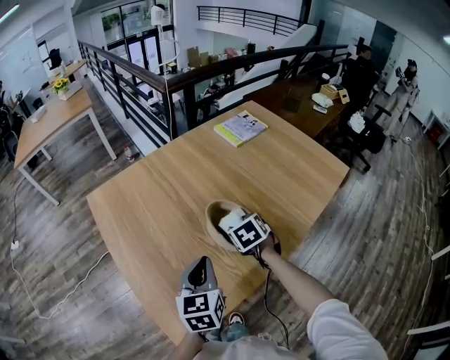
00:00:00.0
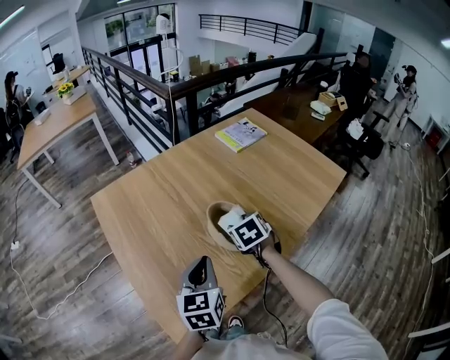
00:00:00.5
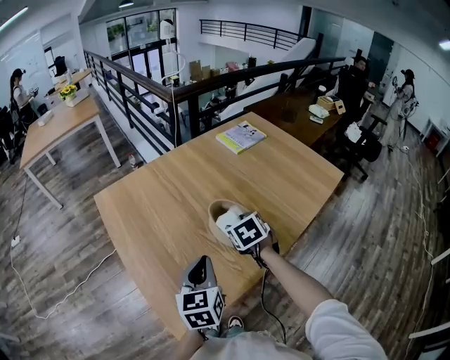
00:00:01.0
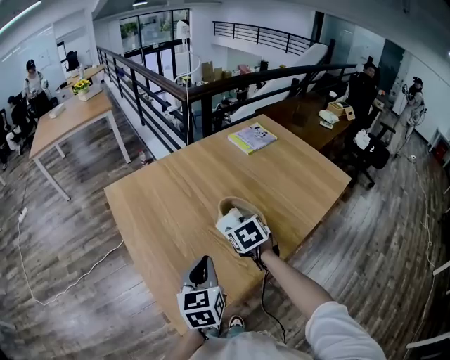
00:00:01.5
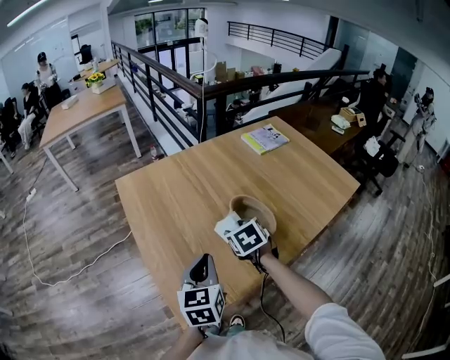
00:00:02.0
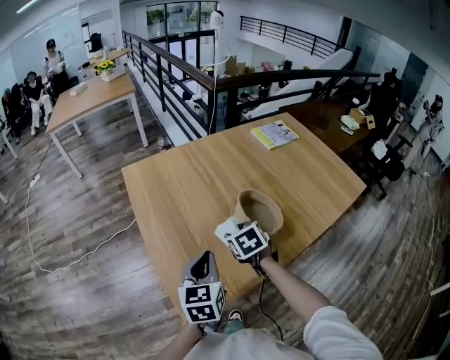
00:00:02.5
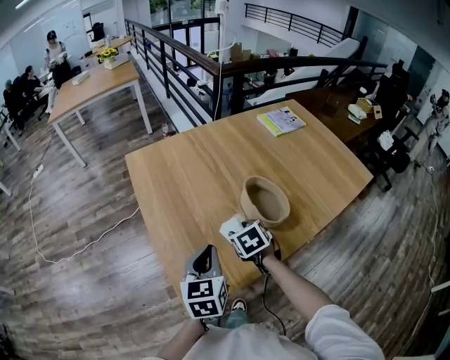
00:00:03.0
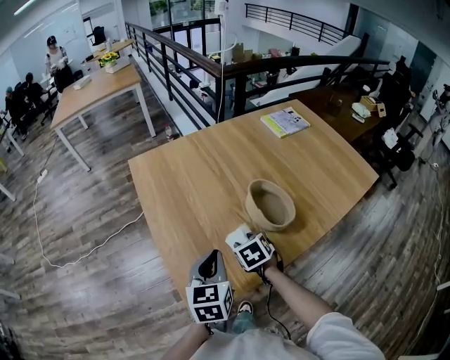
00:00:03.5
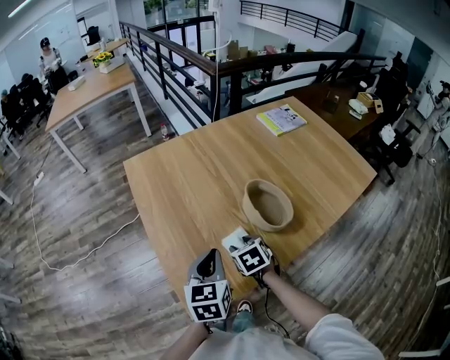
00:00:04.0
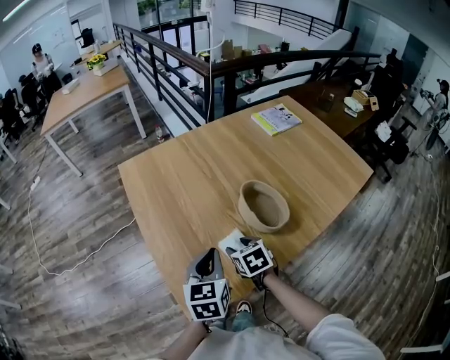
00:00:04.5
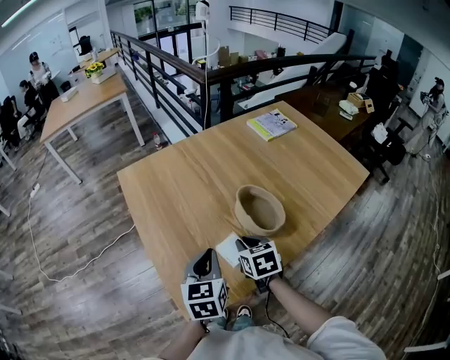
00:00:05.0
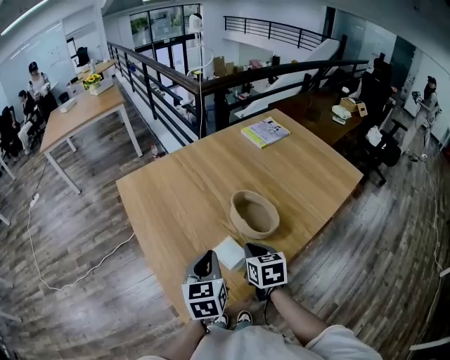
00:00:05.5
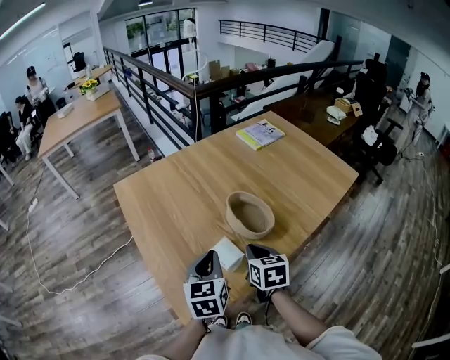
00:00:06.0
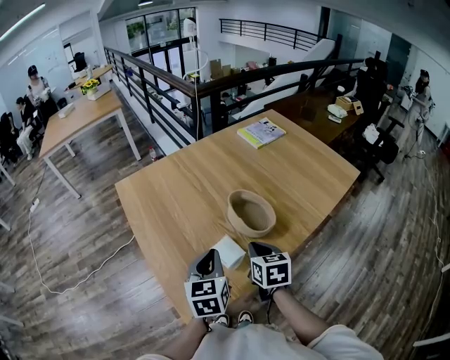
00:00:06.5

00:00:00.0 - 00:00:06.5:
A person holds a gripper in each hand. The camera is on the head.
00:00:00.0 - 00:00:02.0: Both grippers travel together to the left and backward, about 10 cm.
00:00:02.0 - 00:00:04.5: The right gripper is displaced downward and backward by roughly 10 cm.
00:00:04.5 - 00:00:06.5: The right gripper moves upward and to the right, some 15 cm, changes its angle by some 30 degrees, and closes its fingers.

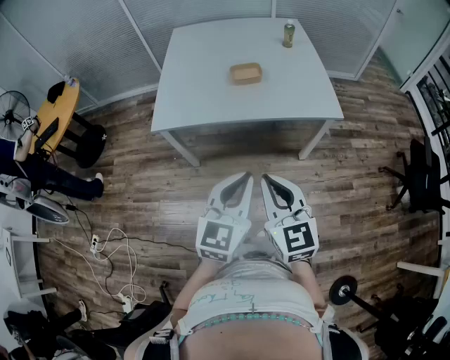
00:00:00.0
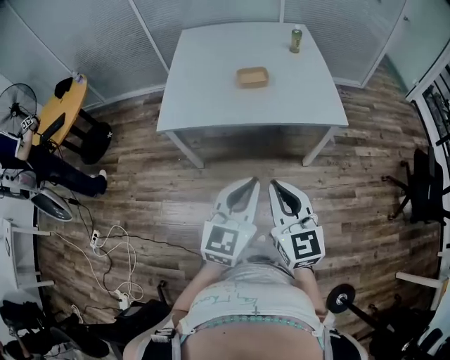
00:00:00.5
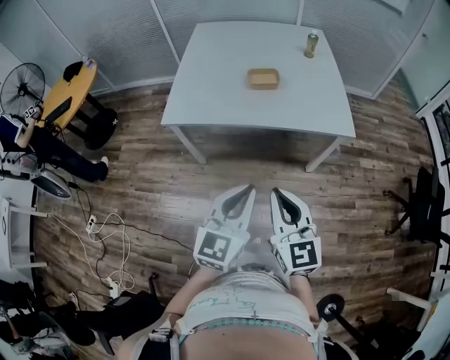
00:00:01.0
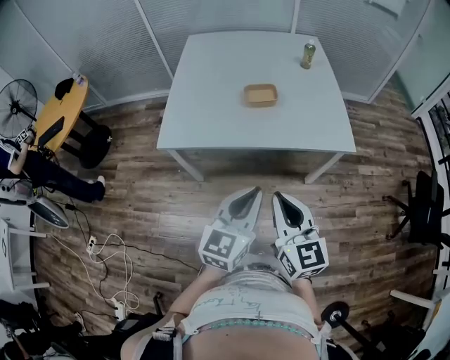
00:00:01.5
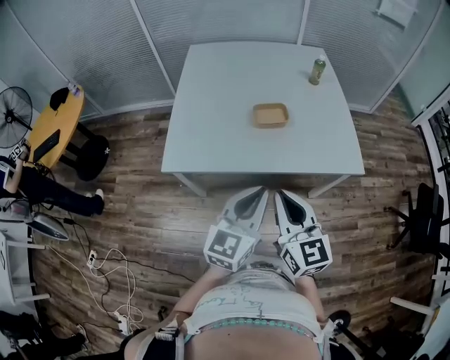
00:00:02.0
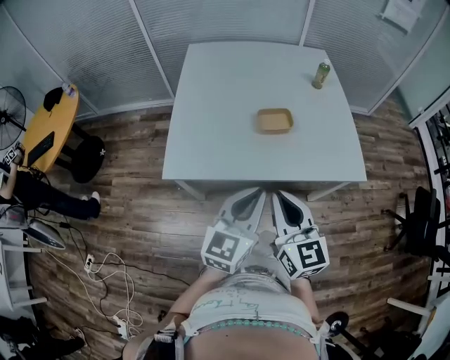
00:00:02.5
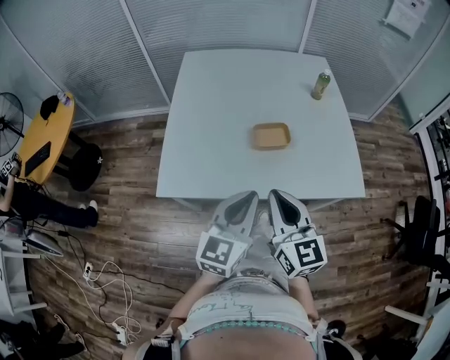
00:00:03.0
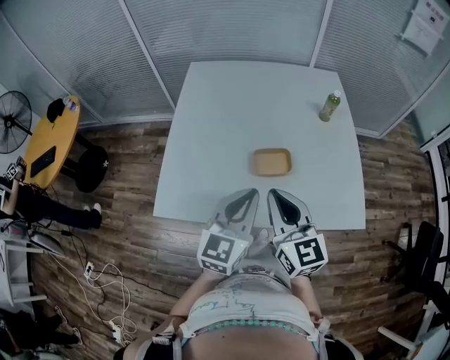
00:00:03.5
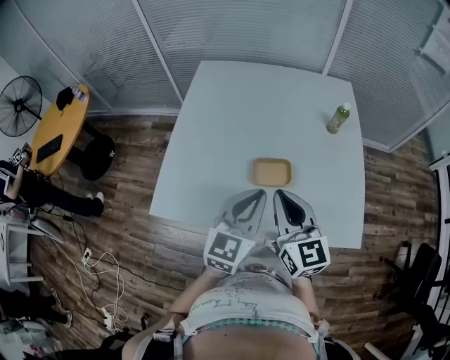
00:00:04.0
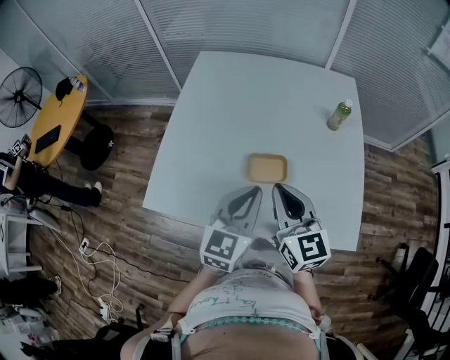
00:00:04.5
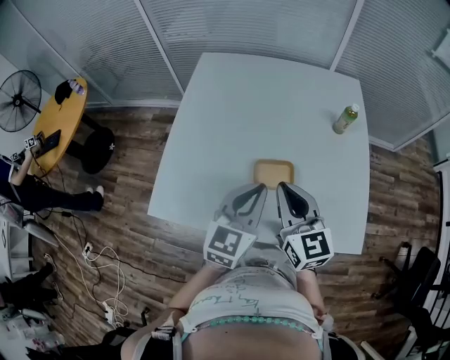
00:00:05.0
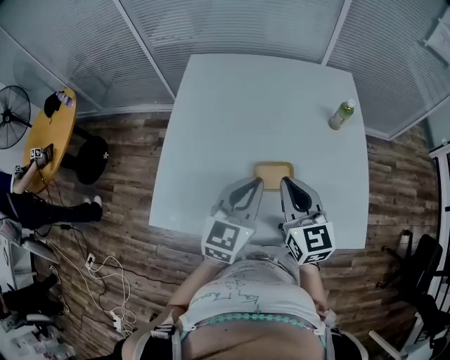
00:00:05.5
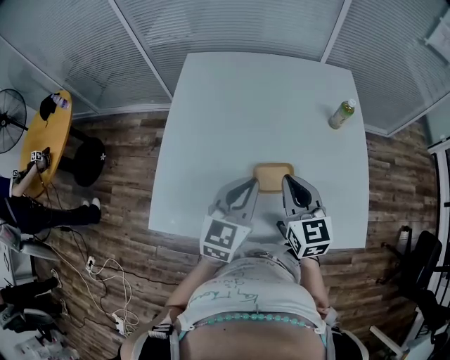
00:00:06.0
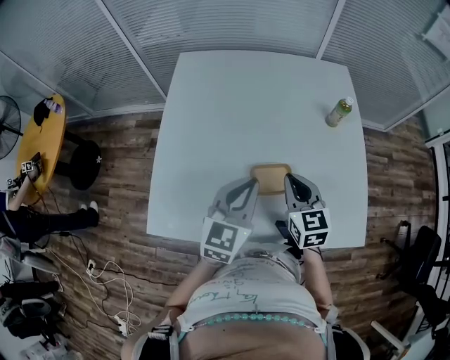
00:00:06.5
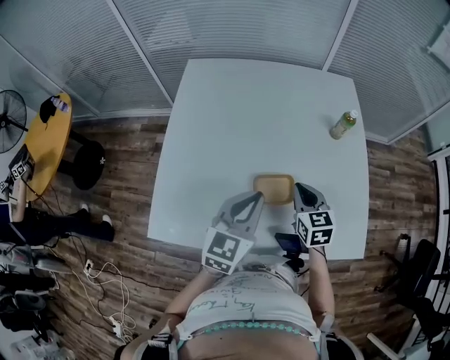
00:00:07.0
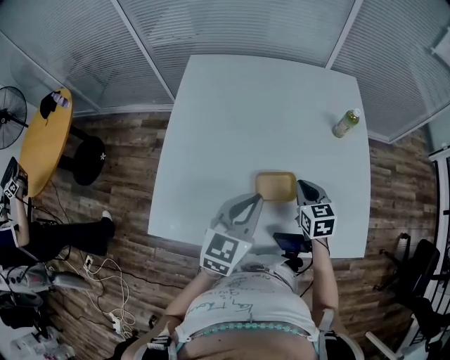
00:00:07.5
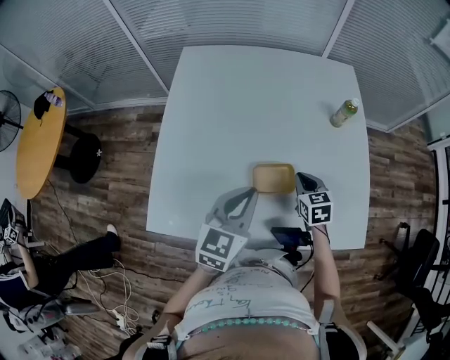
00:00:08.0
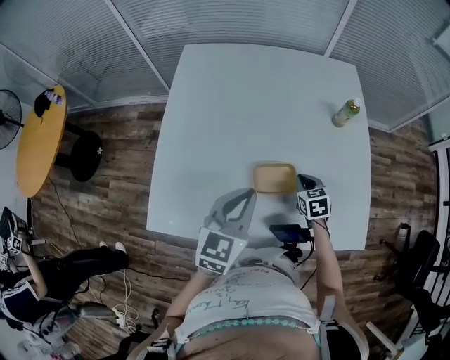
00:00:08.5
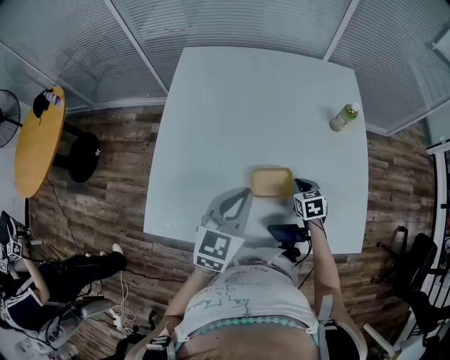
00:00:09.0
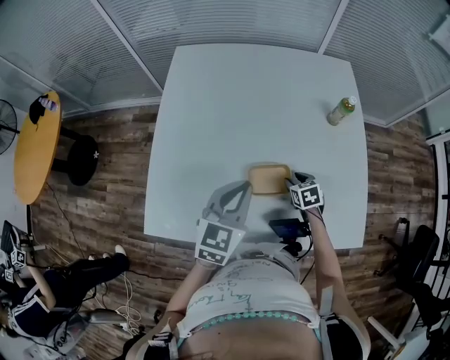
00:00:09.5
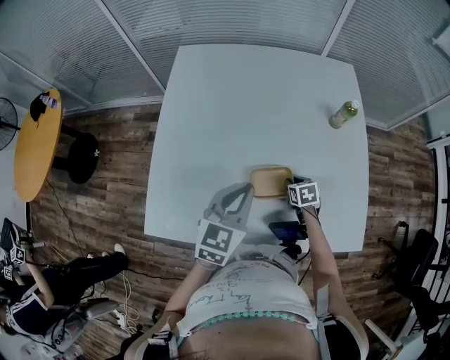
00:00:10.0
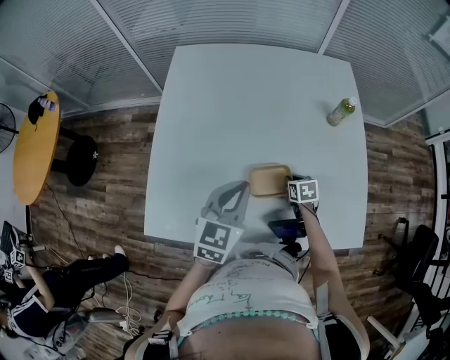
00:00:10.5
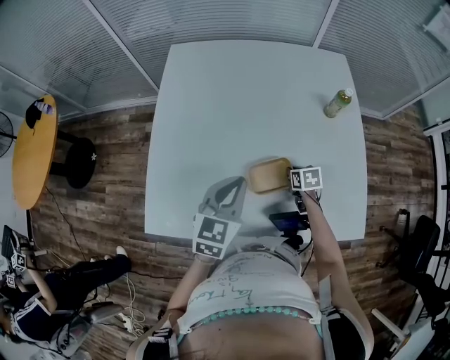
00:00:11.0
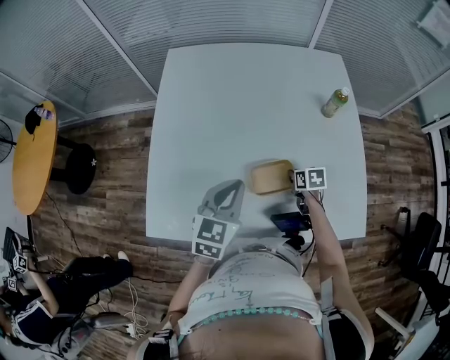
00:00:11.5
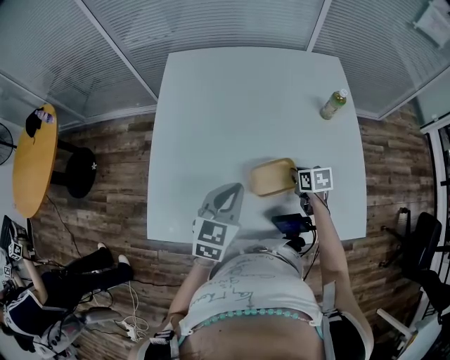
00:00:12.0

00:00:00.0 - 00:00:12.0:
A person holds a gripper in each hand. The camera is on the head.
00:00:00.0 - 00:00:02.0: Both grippers move forward, some 20 cm.
00:00:02.0 - 00:00:04.0: The two grippers go roughly 25 cm forward.
00:00:04.0 - 00:00:06.0: The left gripper shifts about 10 cm forward. The right gripper goes roughly 10 cm forward and downward.
00:00:06.0 - 00:00:08.0: The right gripper goes some 20 cm downward and to the right, and turns by roughly 30 degrees.
00:00:08.0 - 00:00:10.0: The right gripper travels downward by approximately 15 cm, swivels about 20 degrees, and opens, then closes once more.
00:00:10.0 - 00:00:12.0: The right gripper goes roughly 5 cm upward.

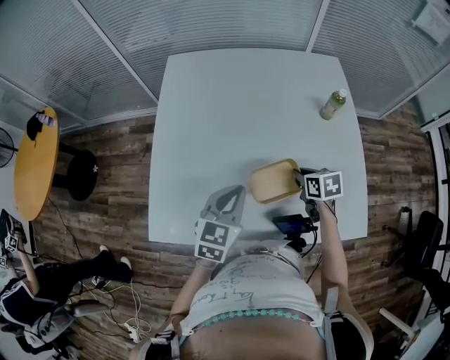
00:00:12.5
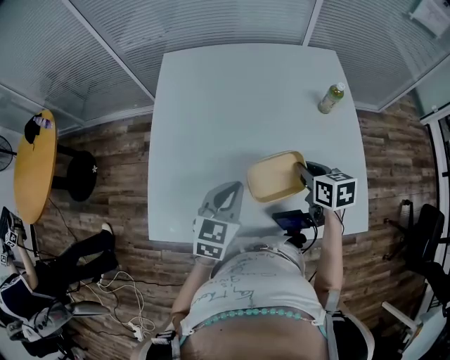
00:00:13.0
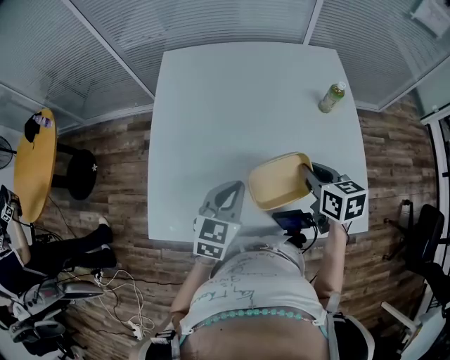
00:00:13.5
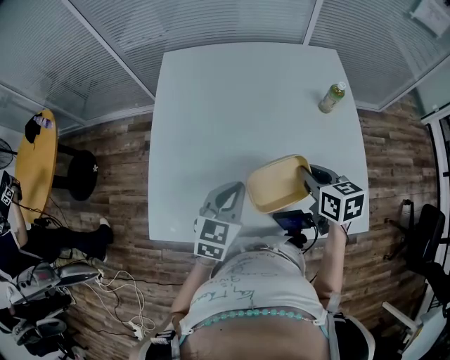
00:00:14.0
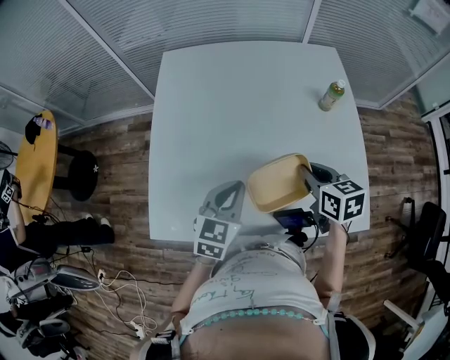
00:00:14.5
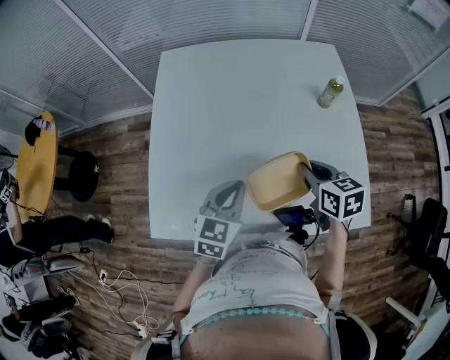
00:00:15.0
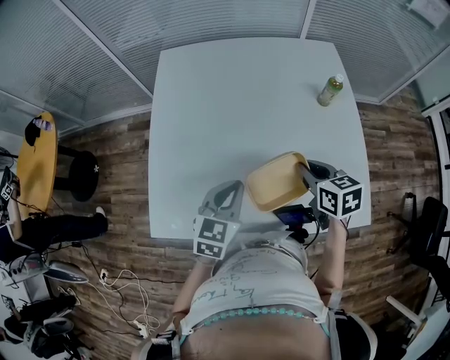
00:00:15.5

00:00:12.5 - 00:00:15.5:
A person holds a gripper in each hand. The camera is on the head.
00:00:12.5 - 00:00:14.0: The right gripper is displaced upward by approximately 10 cm.
00:00:14.0 - 00:00:15.5: Both grippers stay put.

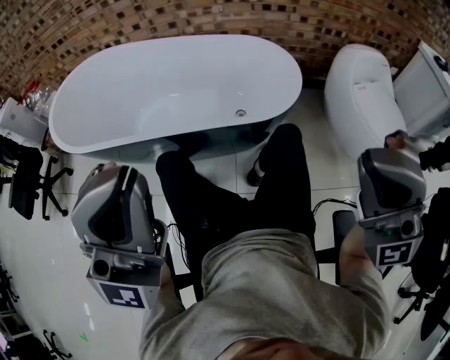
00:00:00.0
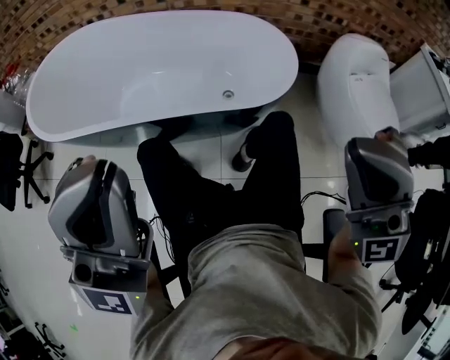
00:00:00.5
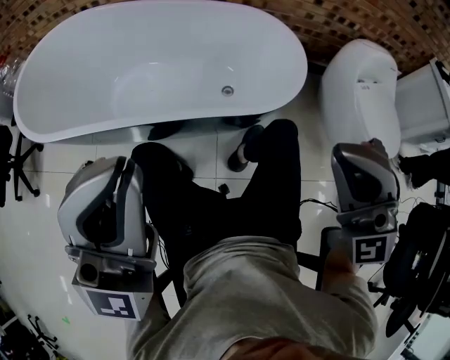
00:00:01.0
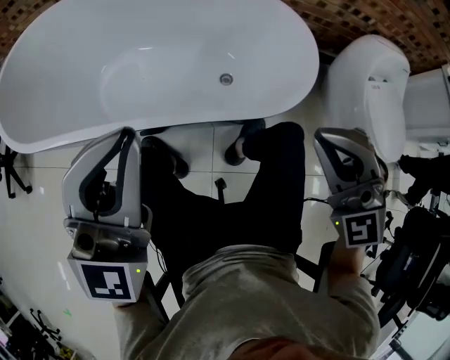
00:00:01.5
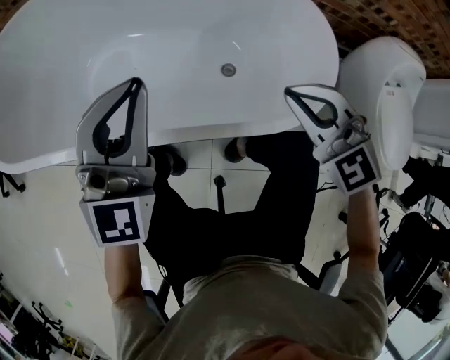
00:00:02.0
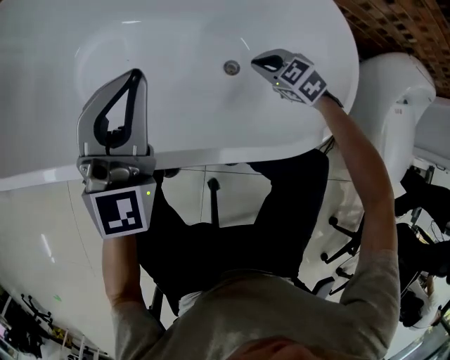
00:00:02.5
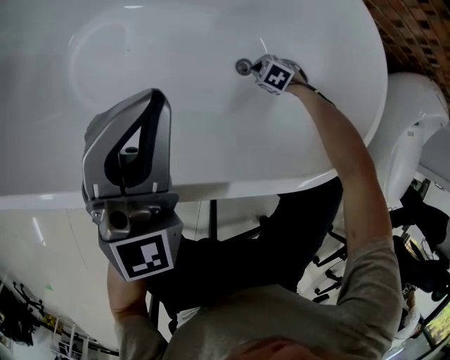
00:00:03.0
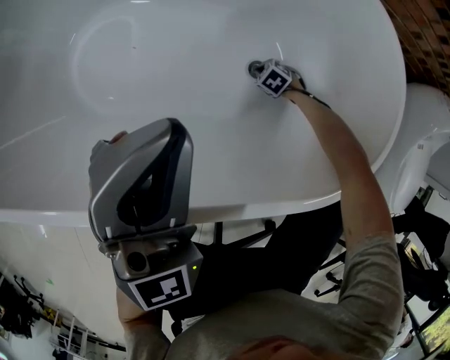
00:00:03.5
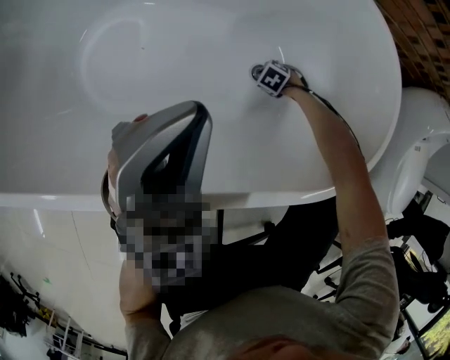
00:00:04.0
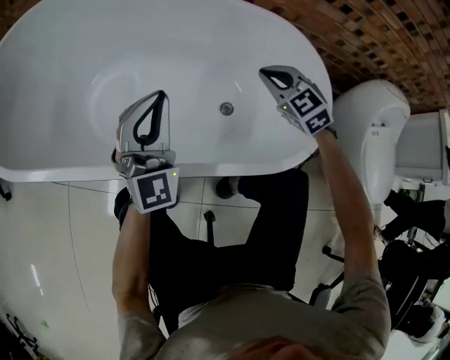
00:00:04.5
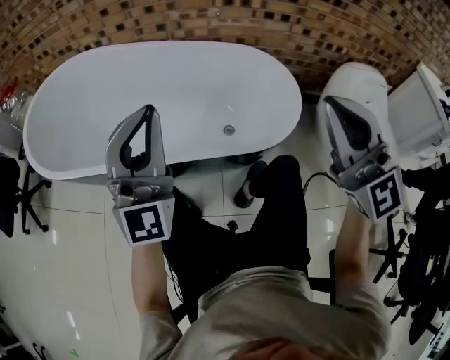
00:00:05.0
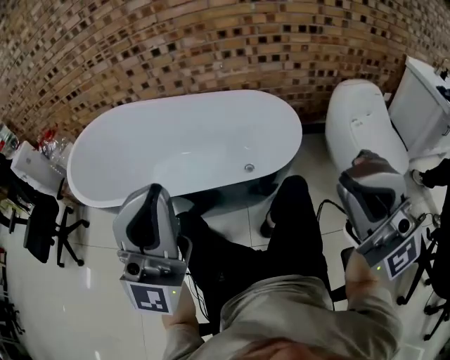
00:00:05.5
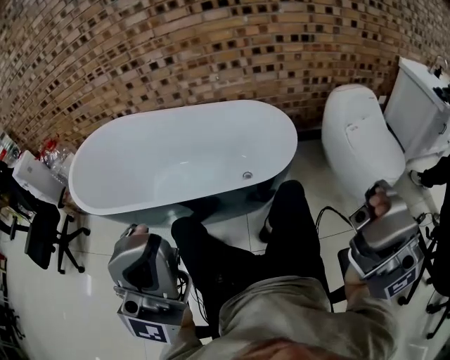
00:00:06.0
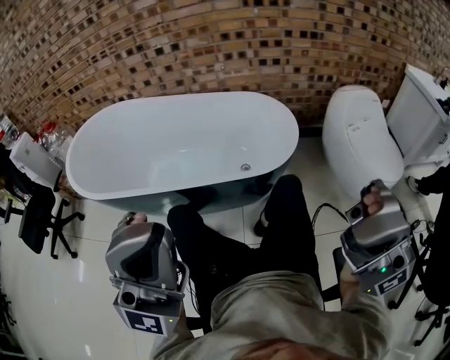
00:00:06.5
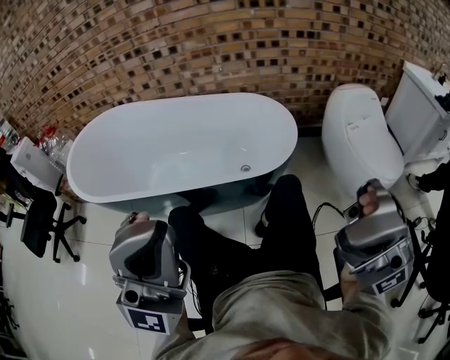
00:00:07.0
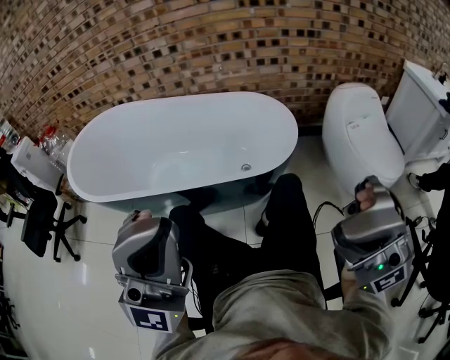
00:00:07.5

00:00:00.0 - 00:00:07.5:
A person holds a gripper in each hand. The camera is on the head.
00:00:00.0 - 00:00:02.0: Both grippers travel together forward and downward, about 50 cm. The right gripper angles its fingers downward, by approximately 40 degrees. Meanwhile the left gripper turns by approximately 30 degrees.
00:00:02.0 - 00:00:04.0: The left gripper travels downward by approximately 10 cm. The right gripper is displaced downward by some 50 cm, and points its fingers roughly 60 degrees further downward.
00:00:04.0 - 00:00:05.5: The left gripper moves roughly 50 cm, and tilts its fingers roughly 40 degrees upward, while the right gripper travels upward by about 90 cm, and angles its fingers upward, by roughly 110 degrees.
00:00:05.5 - 00:00:07.5: Both grippers move backward, roughly 5 cm.
